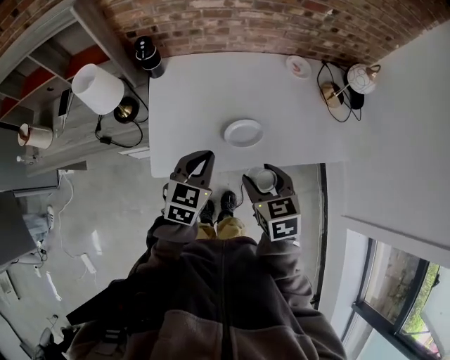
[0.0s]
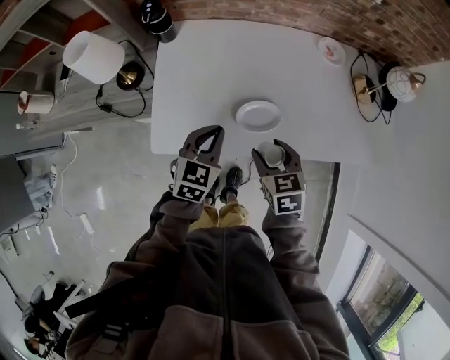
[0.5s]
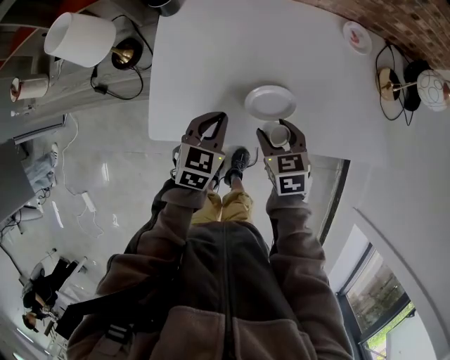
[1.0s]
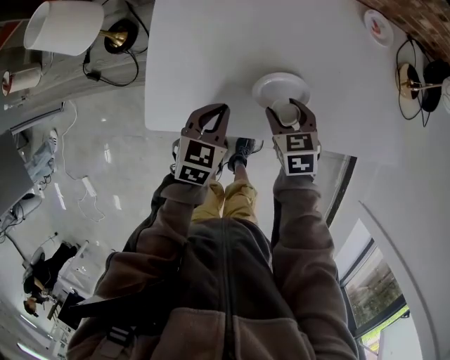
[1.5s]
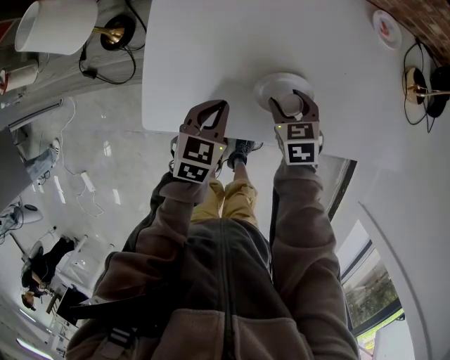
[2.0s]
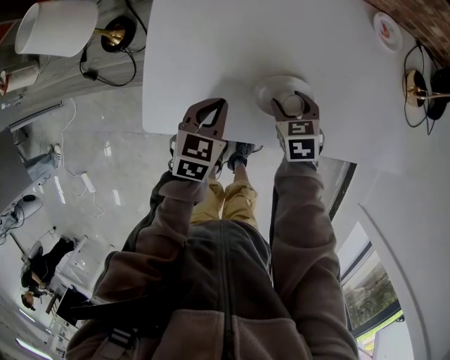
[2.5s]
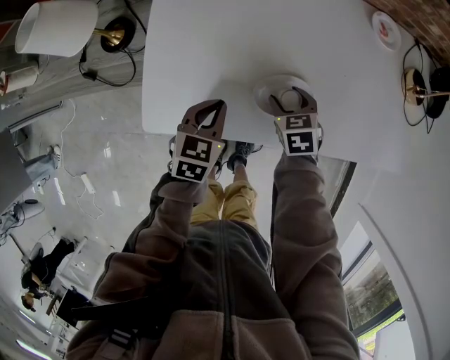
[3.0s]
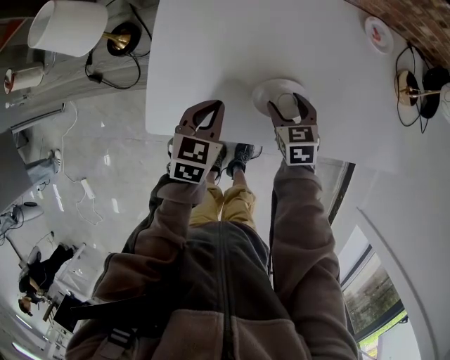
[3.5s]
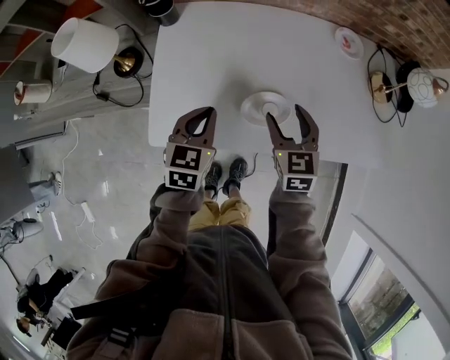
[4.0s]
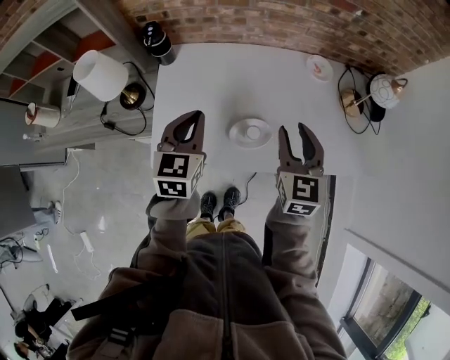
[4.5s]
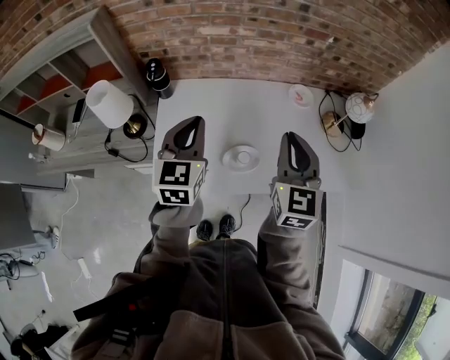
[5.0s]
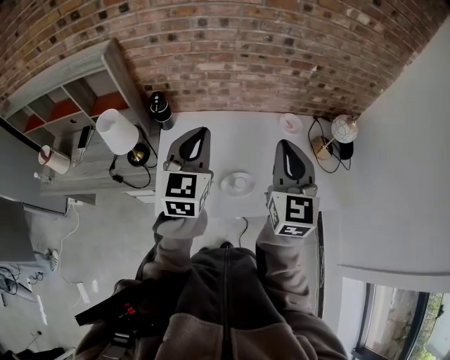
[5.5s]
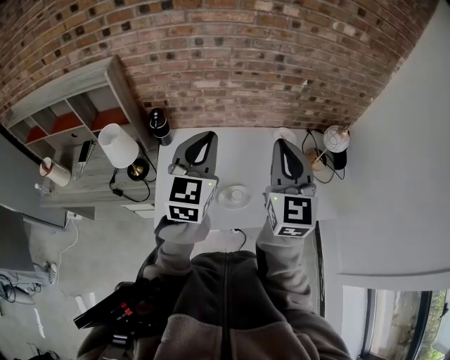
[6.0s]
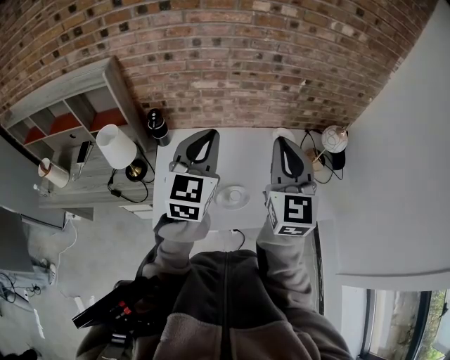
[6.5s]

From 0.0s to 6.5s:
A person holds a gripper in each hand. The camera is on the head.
From 0.0s to 2.0s: The left gripper moves downward, approximately 20 cm. The right gripper heads downward and forward, covering about 30 cm.
From 2.0s to 4.5s: The grippers both shift upward by some 25 cm. The left gripper rotates about 20 degrees. Meanwhile the right gripper points its fingers about 30 degrees further upward.
From 4.5s to 6.5s: Both grippers move upward, about 25 cm. The left gripper changes its angle by approximately 30 degrees; the right gripper rotates approximately 20 degrees, and closes its fingers.

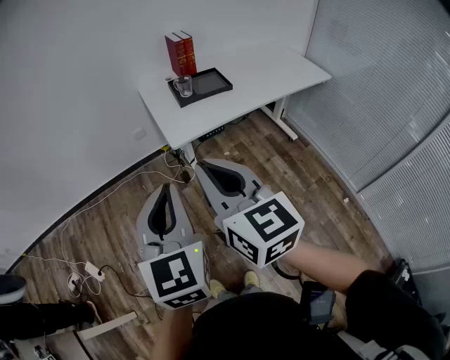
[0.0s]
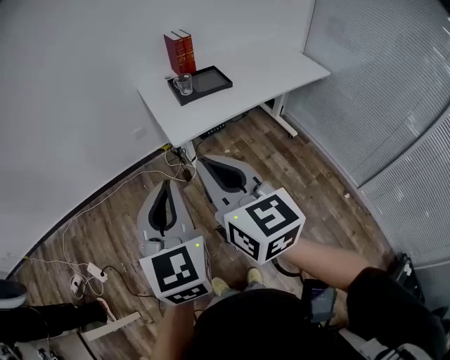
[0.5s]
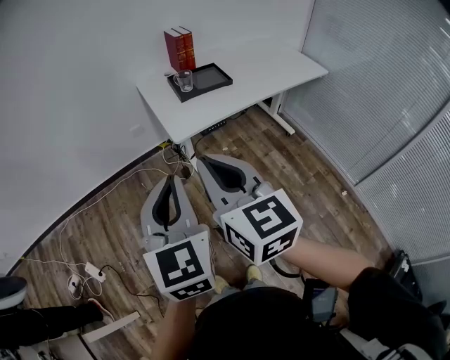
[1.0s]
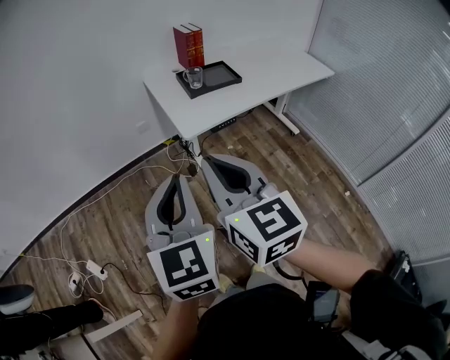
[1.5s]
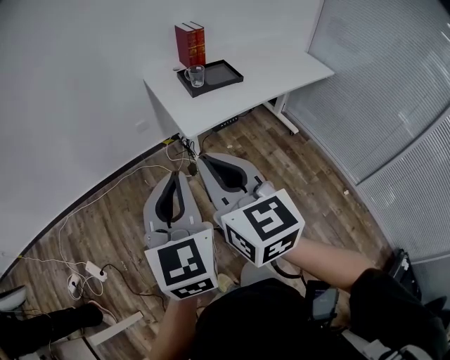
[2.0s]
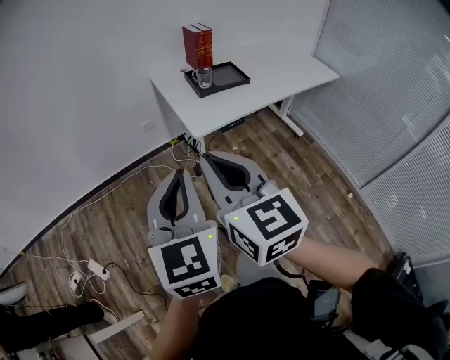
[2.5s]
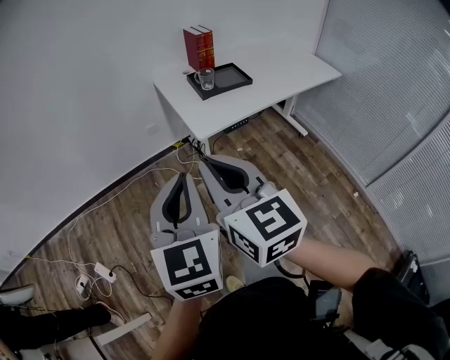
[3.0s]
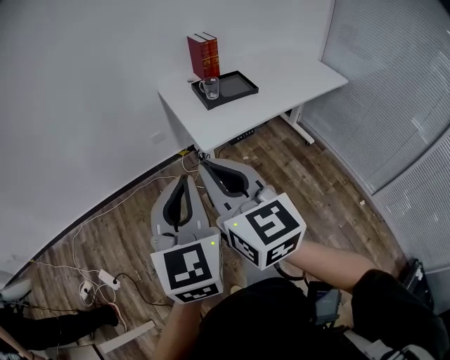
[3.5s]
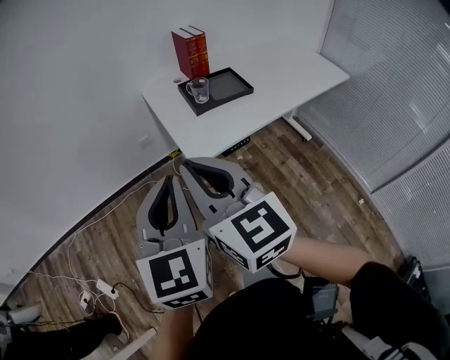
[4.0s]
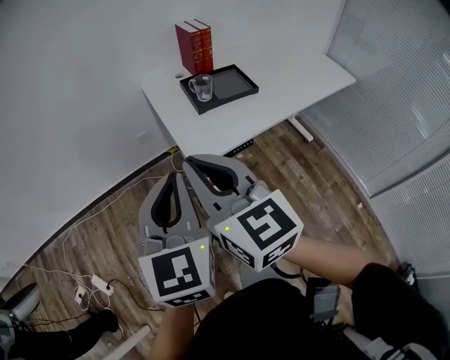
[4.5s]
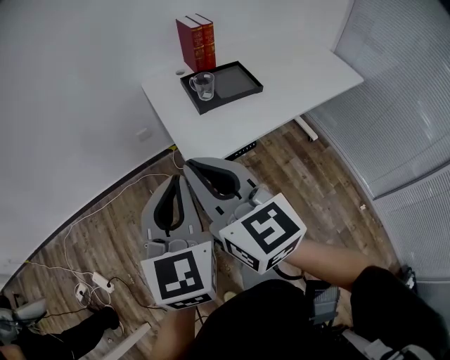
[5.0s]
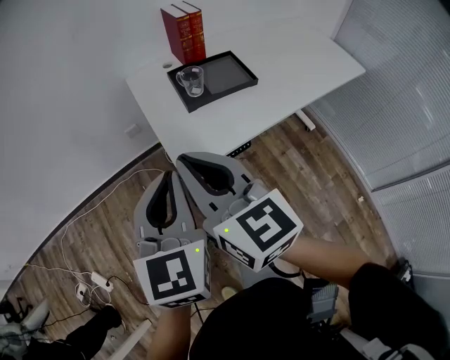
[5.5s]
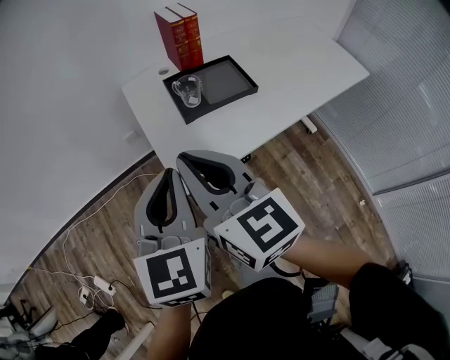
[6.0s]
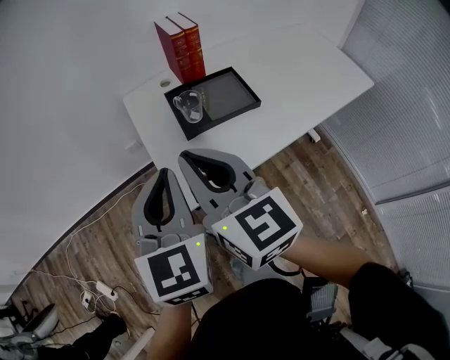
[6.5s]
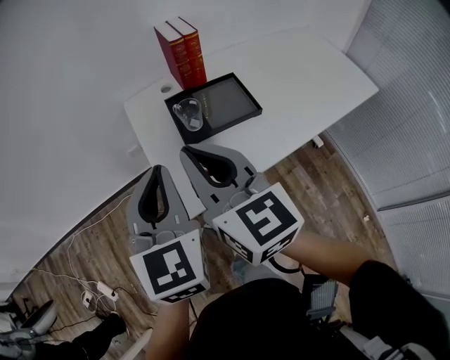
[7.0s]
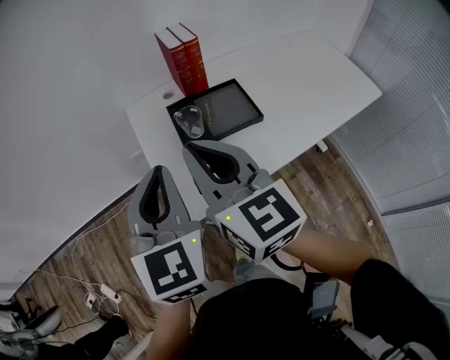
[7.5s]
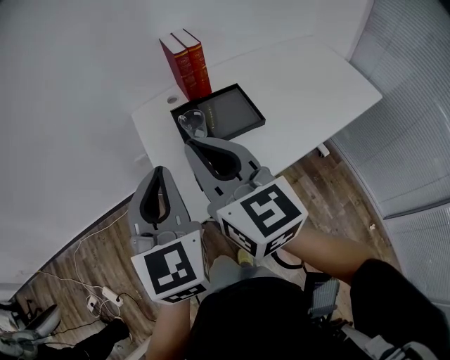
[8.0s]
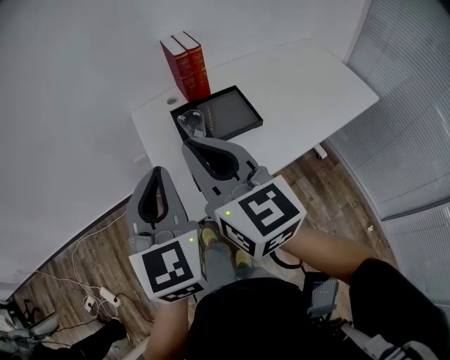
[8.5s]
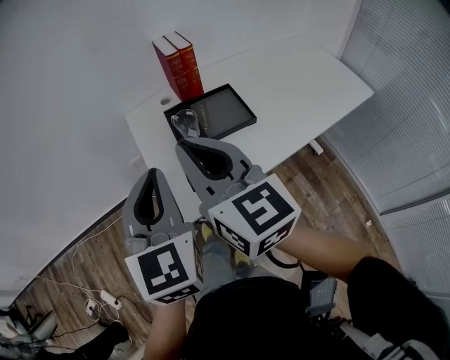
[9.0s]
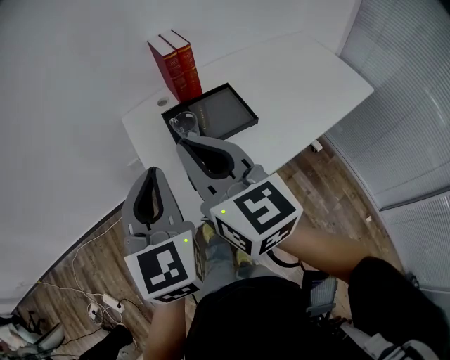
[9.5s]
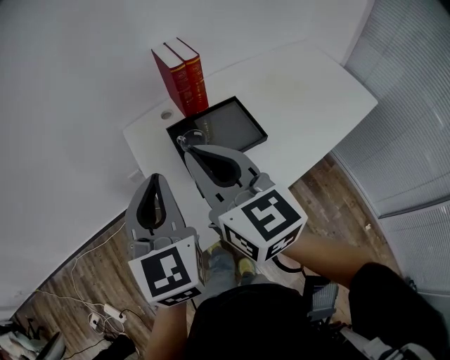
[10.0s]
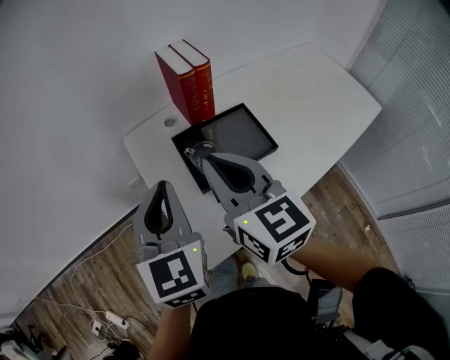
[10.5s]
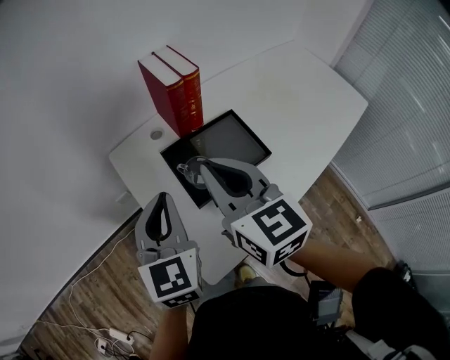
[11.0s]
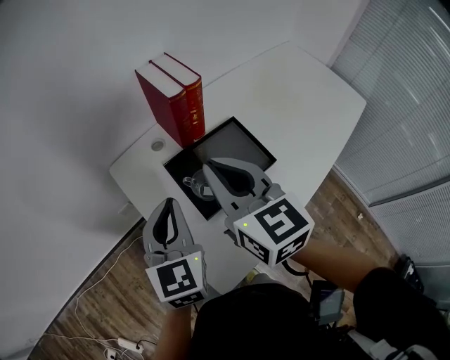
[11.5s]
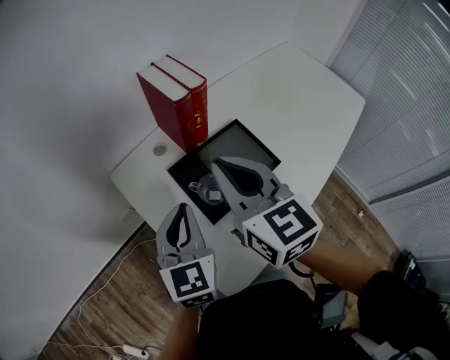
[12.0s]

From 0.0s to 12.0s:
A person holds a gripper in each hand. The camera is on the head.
From 0.0s to 2.0s: Both grippers travel together to the left, approximately 10 cm.
From 2.0s to 4.0s: Both grippers travel together forward, about 15 cm.
From 4.0s to 6.0s: Both grippers move forward and to the right, roughly 20 cm.
From 6.0s to 8.0s: The left gripper is displaced forward by approximately 5 cm; the right gripper travels forward and to the right by some 10 cm.
From 8.0s to 10.0s: Both grippers travel together forward, about 10 cm.
From 10.0s to 12.0s: The left gripper travels forward and downward by roughly 20 cm, and swivels about 20 degrees. Meanwhile the right gripper is displaced forward by approximately 15 cm.

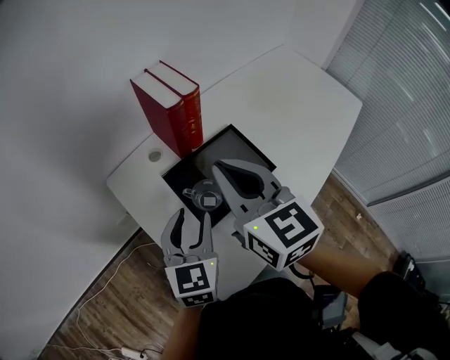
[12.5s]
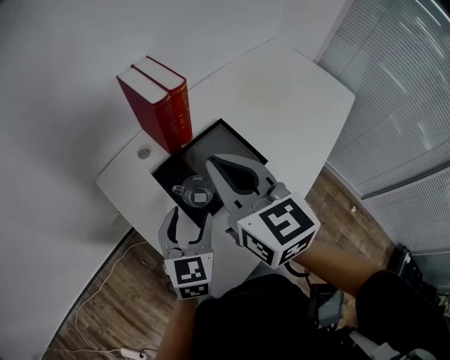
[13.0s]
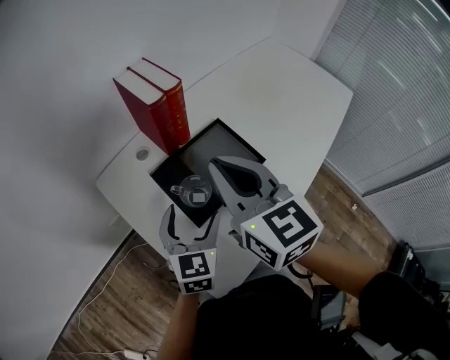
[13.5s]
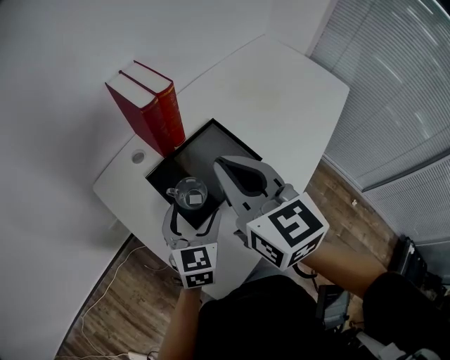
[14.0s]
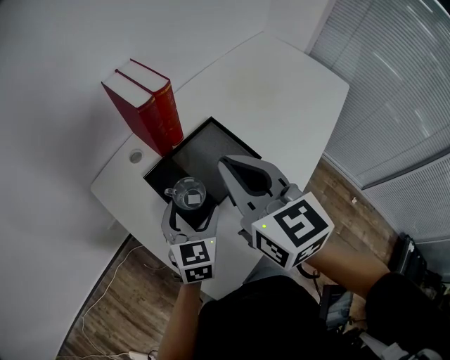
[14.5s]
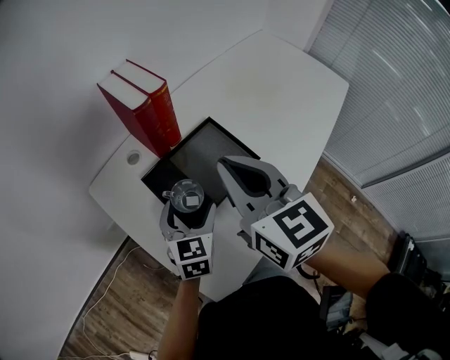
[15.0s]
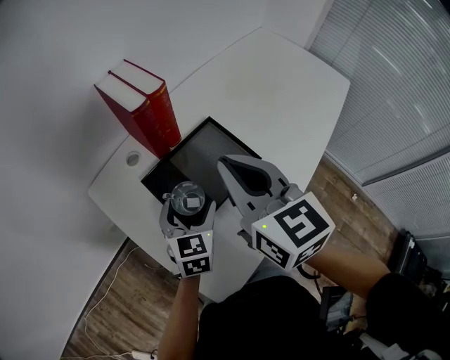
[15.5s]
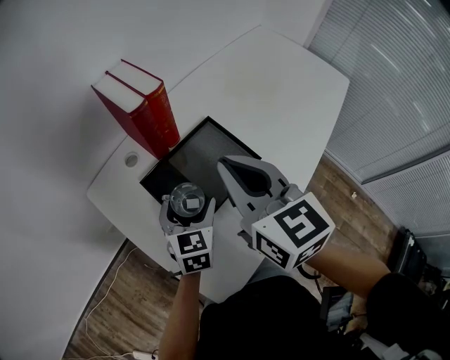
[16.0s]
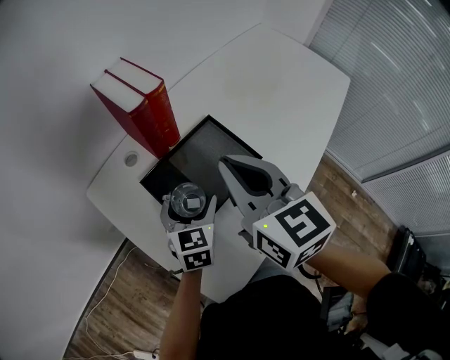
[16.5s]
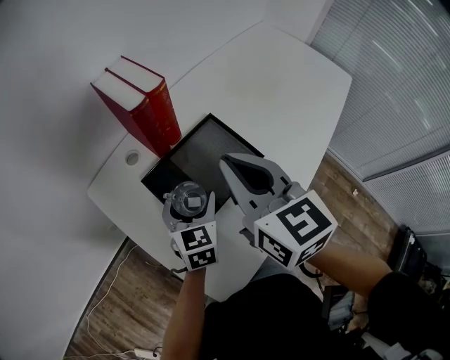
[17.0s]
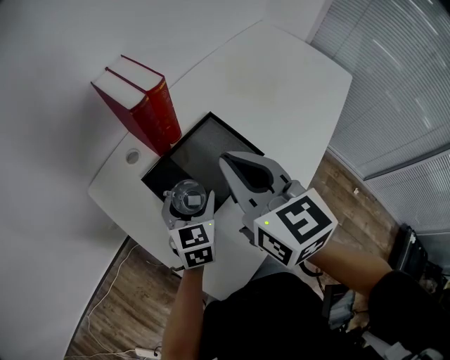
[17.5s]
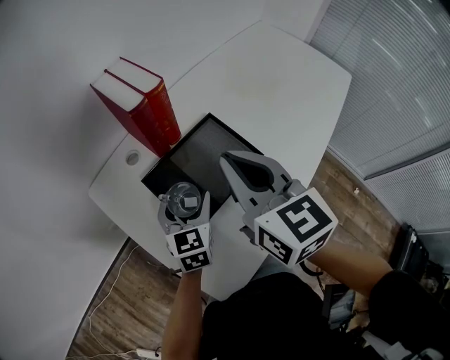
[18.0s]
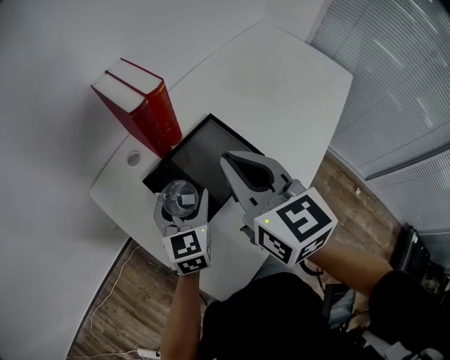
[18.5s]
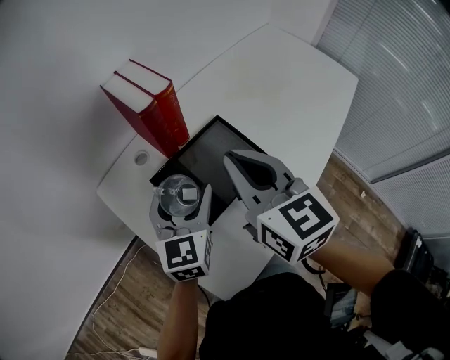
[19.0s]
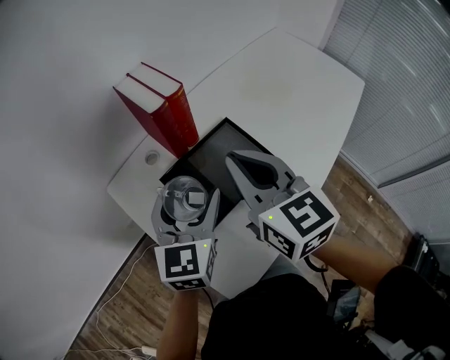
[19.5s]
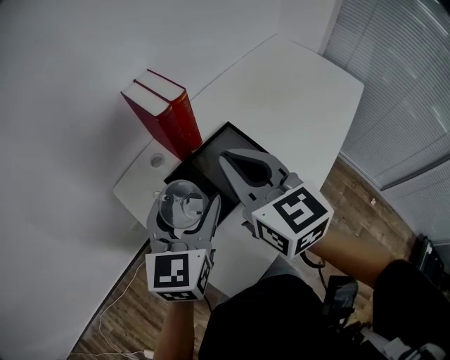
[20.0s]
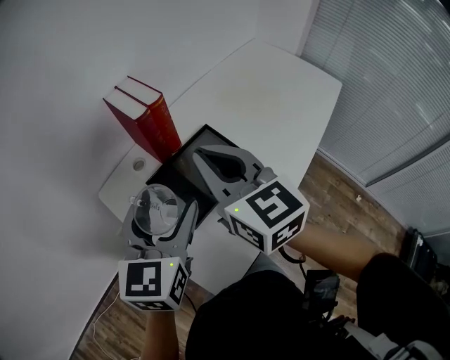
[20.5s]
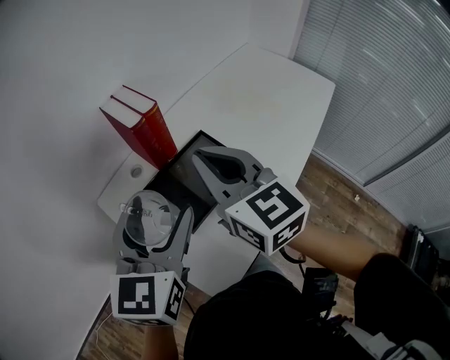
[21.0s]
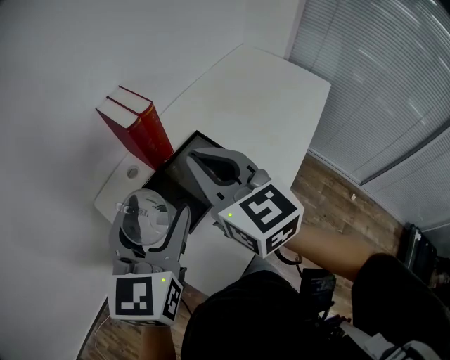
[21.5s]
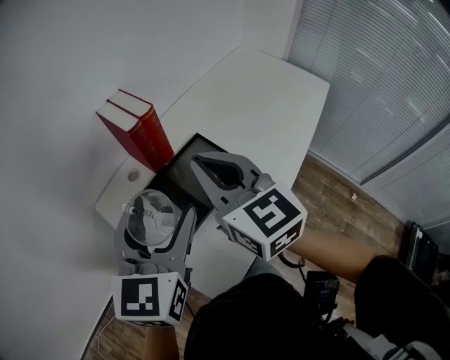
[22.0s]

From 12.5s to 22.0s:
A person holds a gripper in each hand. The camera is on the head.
From 12.5s to 14.5s: The right gripper heads to the right, covering approximately 5 cm. Meanwhile the left gripper shifts roughly 10 cm downward and to the right, and opens up.
From 14.5s to 18.0s: The grippers move only a little.
From 18.0s to 20.0s: The left gripper is displaced upward by some 20 cm.
From 20.0s to 22.0s: The left gripper heads upward, covering some 5 cm.
